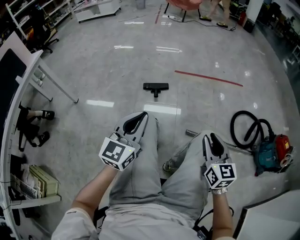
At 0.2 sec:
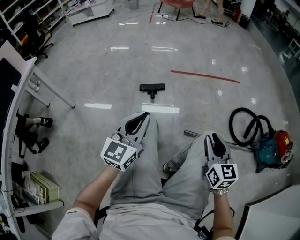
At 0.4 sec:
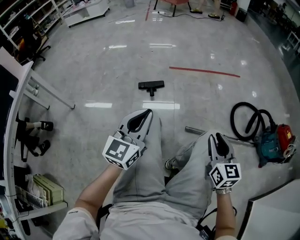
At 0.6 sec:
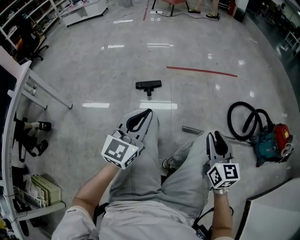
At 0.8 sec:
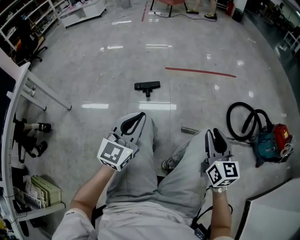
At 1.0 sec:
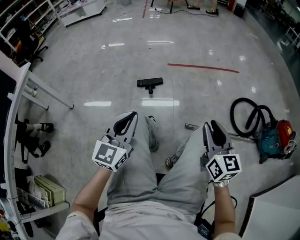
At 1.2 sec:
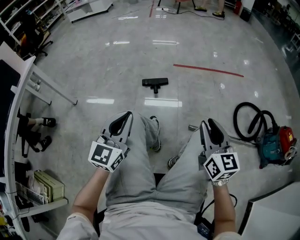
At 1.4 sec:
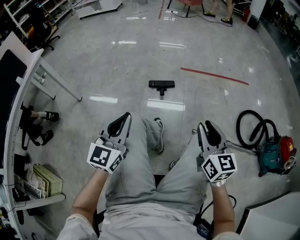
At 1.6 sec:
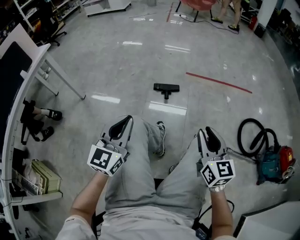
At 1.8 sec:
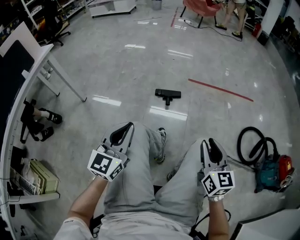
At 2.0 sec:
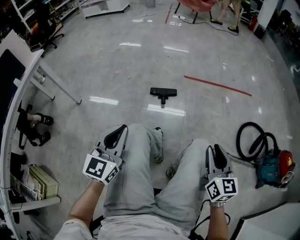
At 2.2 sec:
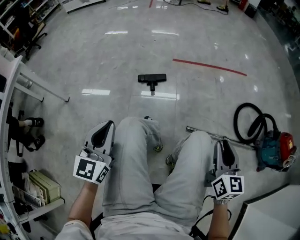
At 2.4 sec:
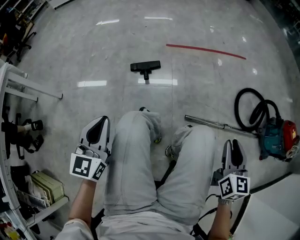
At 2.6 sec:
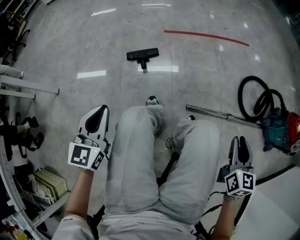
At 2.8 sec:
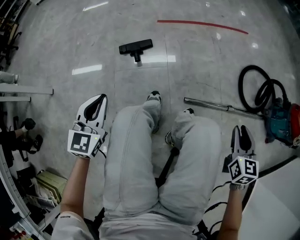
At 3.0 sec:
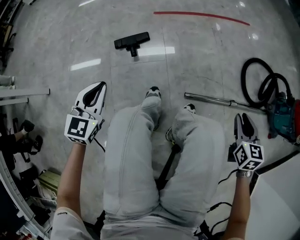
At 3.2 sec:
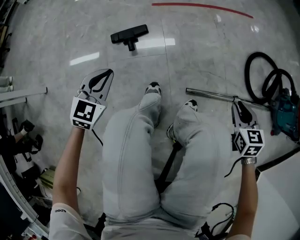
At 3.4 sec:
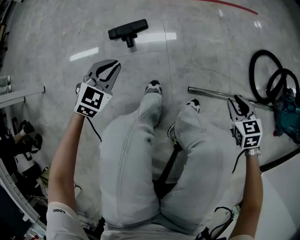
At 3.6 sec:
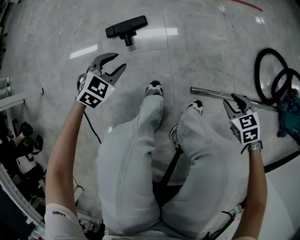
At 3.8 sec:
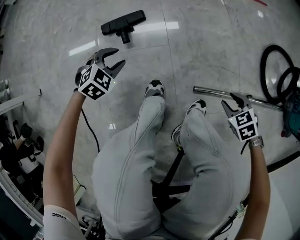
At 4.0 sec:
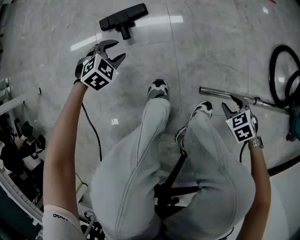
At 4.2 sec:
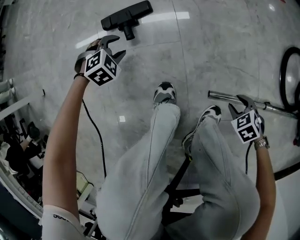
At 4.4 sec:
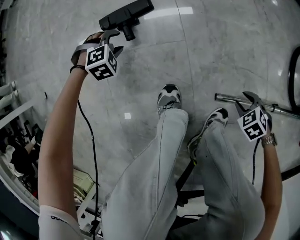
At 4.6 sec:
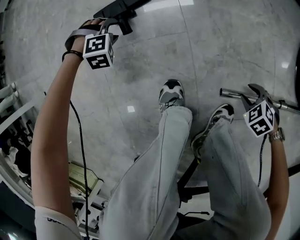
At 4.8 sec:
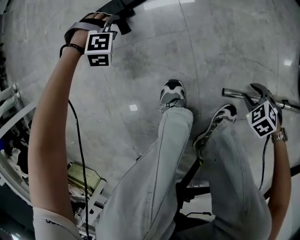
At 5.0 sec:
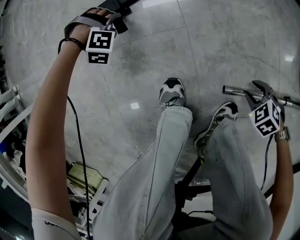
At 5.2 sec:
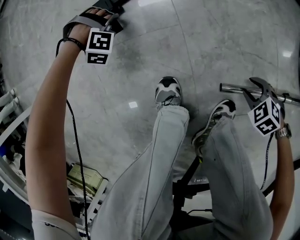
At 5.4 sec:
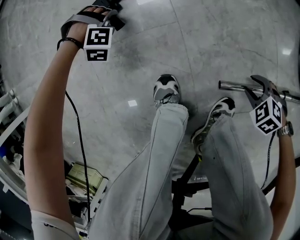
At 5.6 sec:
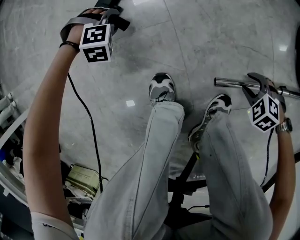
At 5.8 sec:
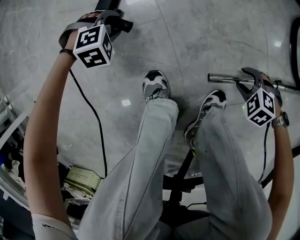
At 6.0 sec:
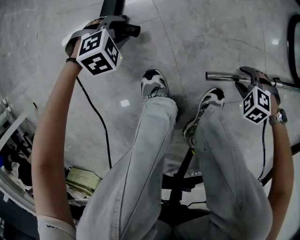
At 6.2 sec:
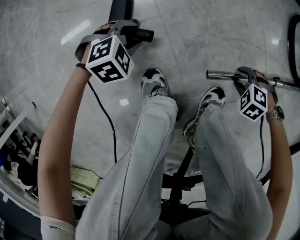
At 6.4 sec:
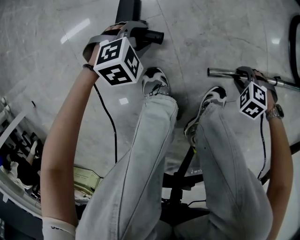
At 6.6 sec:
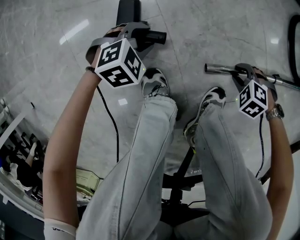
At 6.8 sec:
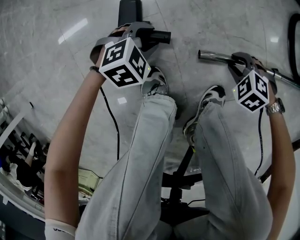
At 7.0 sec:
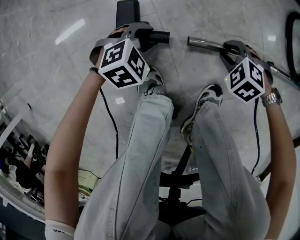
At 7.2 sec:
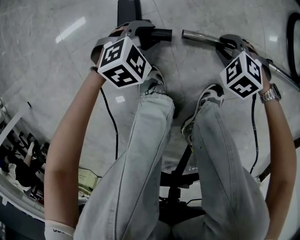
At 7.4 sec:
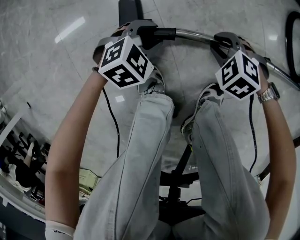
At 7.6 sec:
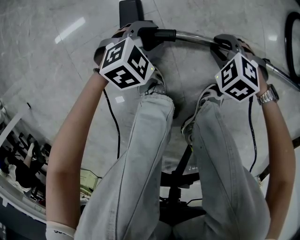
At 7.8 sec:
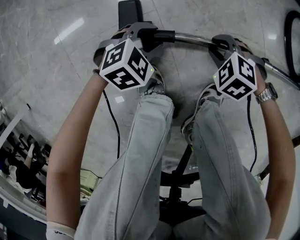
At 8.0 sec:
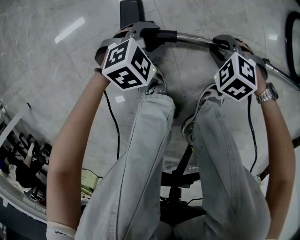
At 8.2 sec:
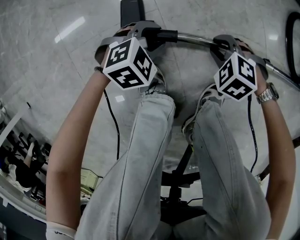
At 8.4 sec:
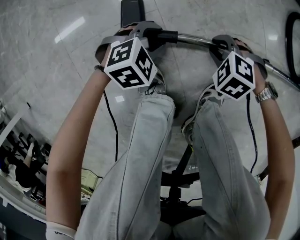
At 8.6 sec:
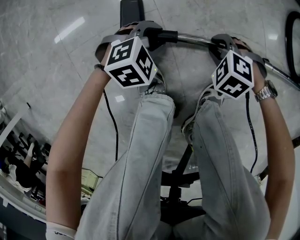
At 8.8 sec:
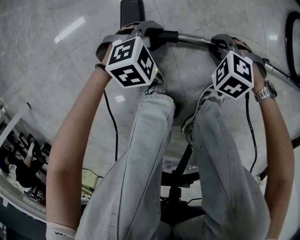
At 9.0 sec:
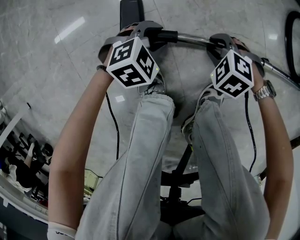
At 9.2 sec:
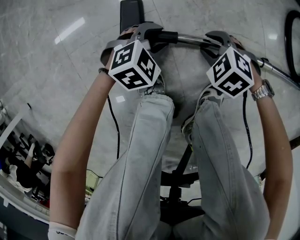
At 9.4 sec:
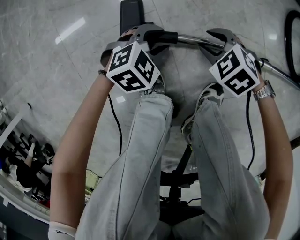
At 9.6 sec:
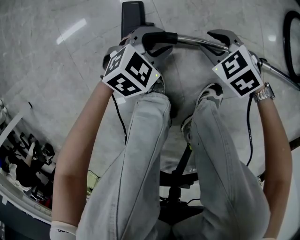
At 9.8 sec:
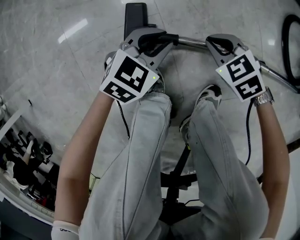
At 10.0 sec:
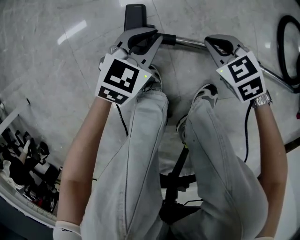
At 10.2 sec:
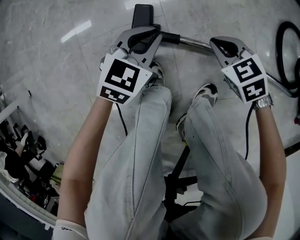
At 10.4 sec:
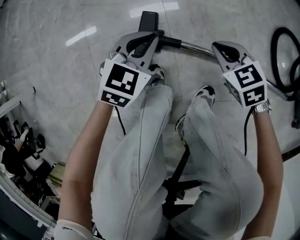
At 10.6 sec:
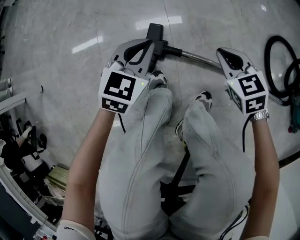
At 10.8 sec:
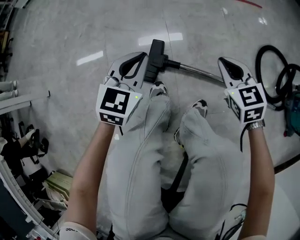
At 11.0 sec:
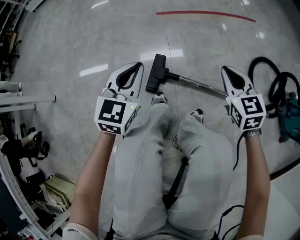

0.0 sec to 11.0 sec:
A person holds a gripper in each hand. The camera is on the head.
0.0 sec to 1.6 sec: Both grippers move to the left, some 10 cm.
1.6 sec to 3.2 sec: The right gripper is displaced downward, to the right and forward by some 40 cm, and tilts its fingers about 30 degrees downward. Meanwhile the left gripper heads downward and forward, covering roughly 35 cm, and rotates approximately 40 degrees.
3.2 sec to 4.8 sec: The two grippers go some 35 cm downward. The left gripper rotates around the line of its fingers by approximately 70 degrees, clockwise from behind, and opens up. Meanwhile the right gripper points its fingers roughly 40 degrees further downward.
4.8 sec to 6.2 sec: The left gripper changes place by approximately 20 cm, and changes its angle by roughly 40 degrees.
6.2 sec to 7.8 sec: The right gripper shifts by approximately 15 cm, while the left gripper changes place by roughly 10 cm.
7.8 sec to 9.4 sec: The grippers stay close to where they were, moving slightly.
9.4 sec to 11.0 sec: Both grippers move upward, approximately 40 cm. The right gripper tips its fingers upward by approximately 40 degrees, and closes. The left gripper angles its fingers upward, by some 30 degrees, and closes its fingers.

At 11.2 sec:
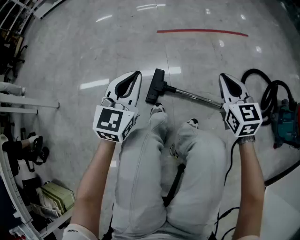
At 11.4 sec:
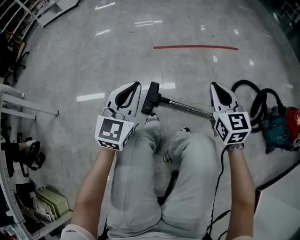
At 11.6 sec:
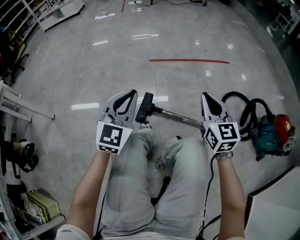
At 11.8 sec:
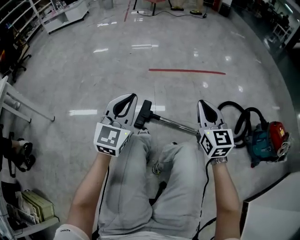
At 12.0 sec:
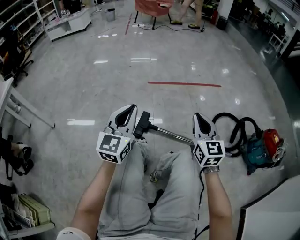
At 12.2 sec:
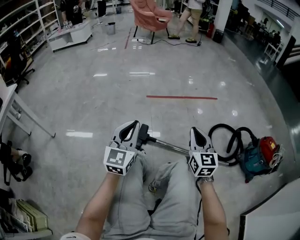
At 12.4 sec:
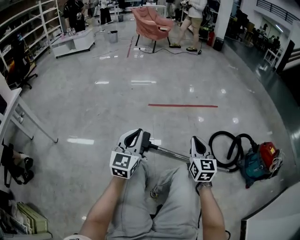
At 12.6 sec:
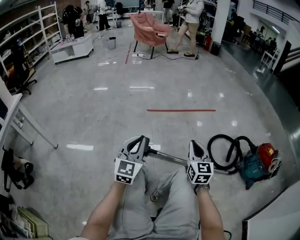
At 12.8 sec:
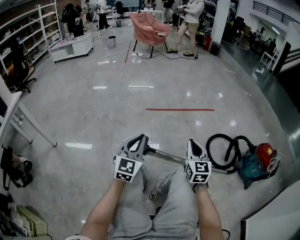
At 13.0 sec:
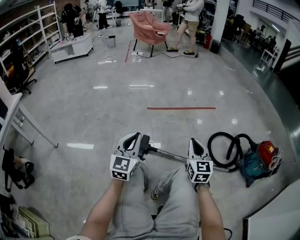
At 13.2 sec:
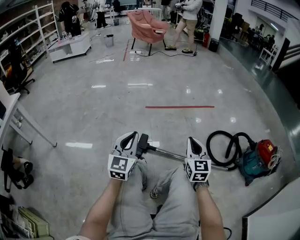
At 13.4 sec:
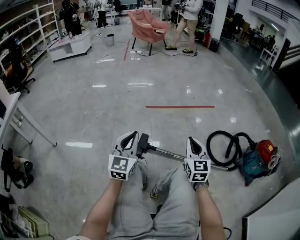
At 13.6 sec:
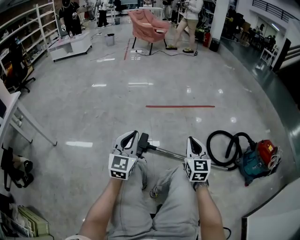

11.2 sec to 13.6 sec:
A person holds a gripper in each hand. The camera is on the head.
11.2 sec to 12.4 sec: The right gripper heads backward and upward, covering approximately 20 cm. The left gripper travels upward and backward by about 20 cm.
12.4 sec to 13.6 sec: The grippers make only small movements.

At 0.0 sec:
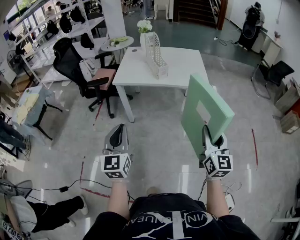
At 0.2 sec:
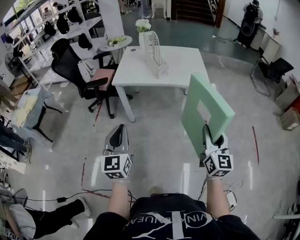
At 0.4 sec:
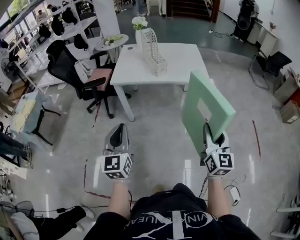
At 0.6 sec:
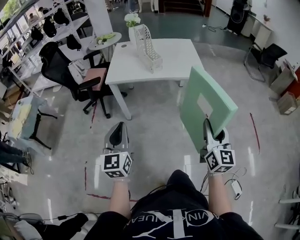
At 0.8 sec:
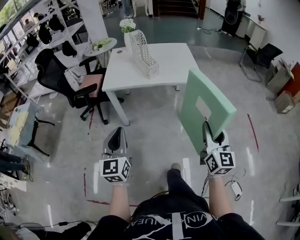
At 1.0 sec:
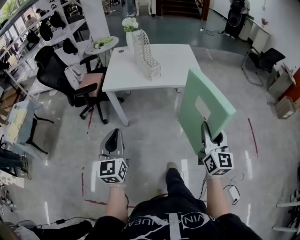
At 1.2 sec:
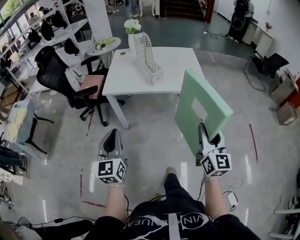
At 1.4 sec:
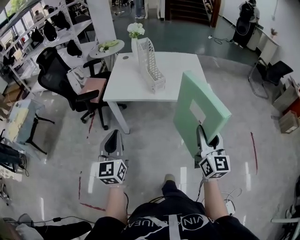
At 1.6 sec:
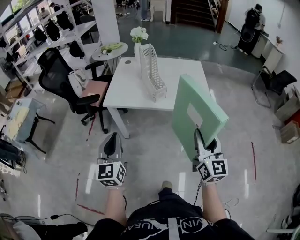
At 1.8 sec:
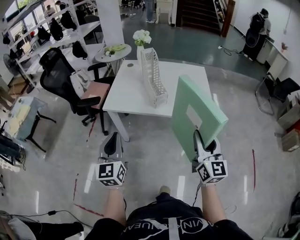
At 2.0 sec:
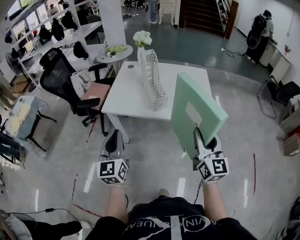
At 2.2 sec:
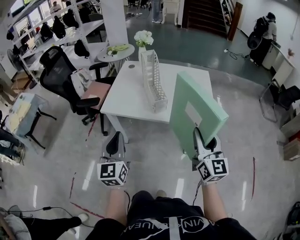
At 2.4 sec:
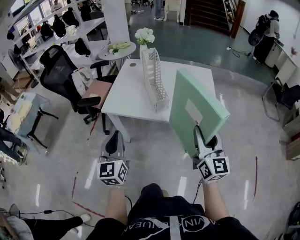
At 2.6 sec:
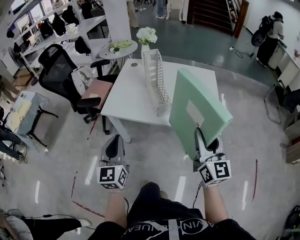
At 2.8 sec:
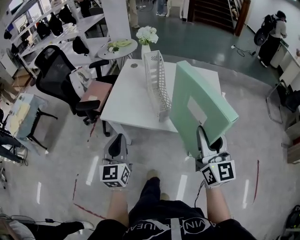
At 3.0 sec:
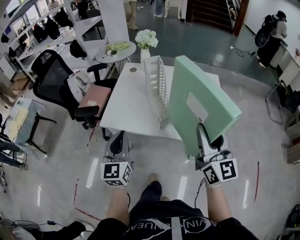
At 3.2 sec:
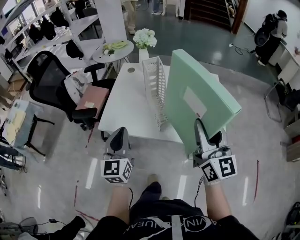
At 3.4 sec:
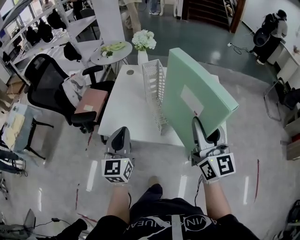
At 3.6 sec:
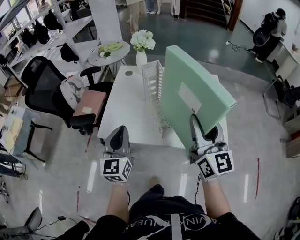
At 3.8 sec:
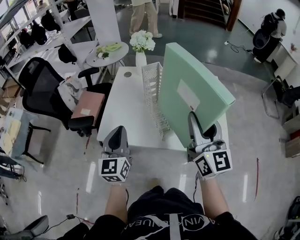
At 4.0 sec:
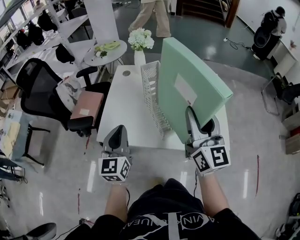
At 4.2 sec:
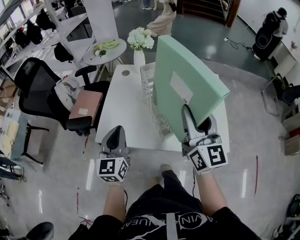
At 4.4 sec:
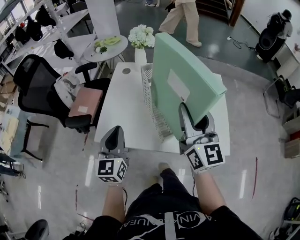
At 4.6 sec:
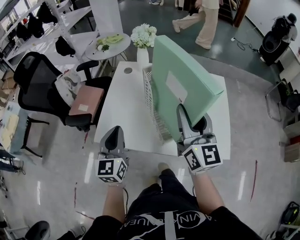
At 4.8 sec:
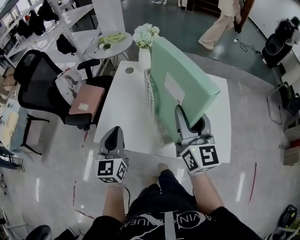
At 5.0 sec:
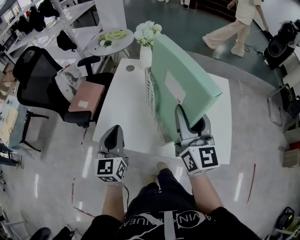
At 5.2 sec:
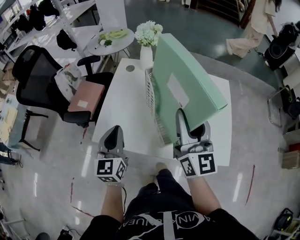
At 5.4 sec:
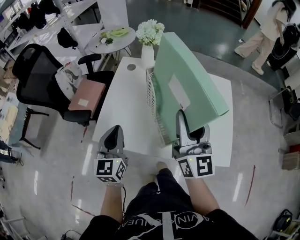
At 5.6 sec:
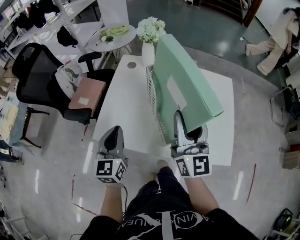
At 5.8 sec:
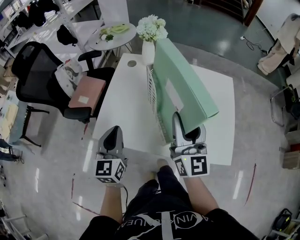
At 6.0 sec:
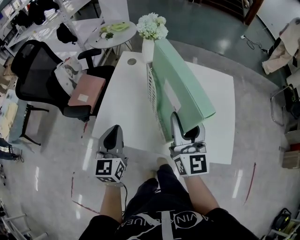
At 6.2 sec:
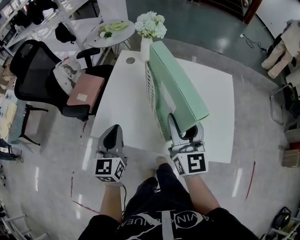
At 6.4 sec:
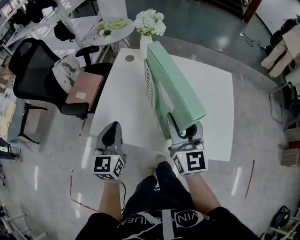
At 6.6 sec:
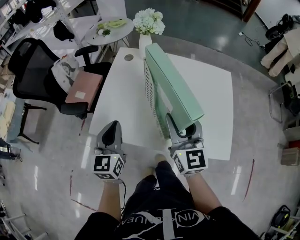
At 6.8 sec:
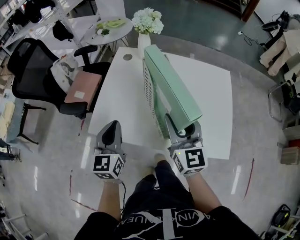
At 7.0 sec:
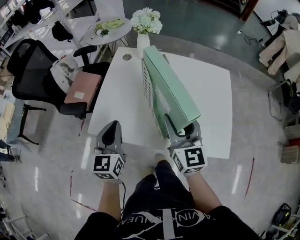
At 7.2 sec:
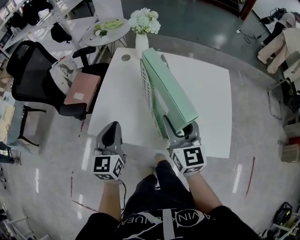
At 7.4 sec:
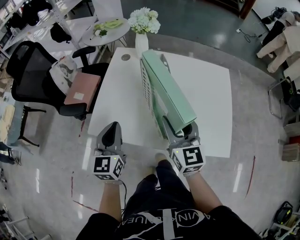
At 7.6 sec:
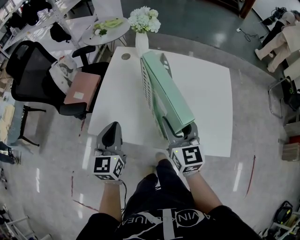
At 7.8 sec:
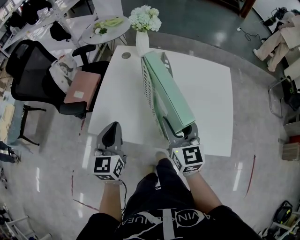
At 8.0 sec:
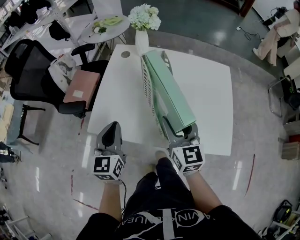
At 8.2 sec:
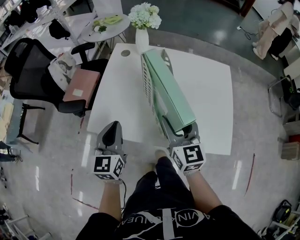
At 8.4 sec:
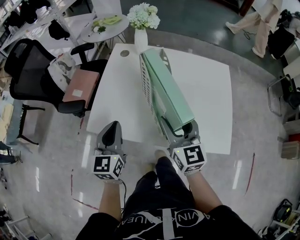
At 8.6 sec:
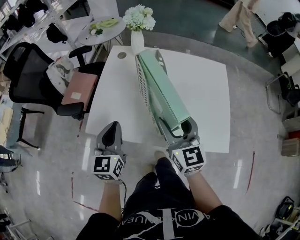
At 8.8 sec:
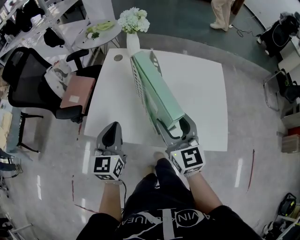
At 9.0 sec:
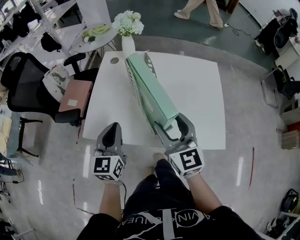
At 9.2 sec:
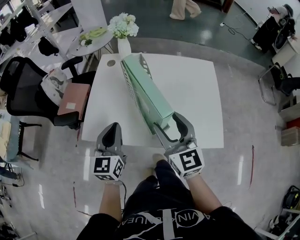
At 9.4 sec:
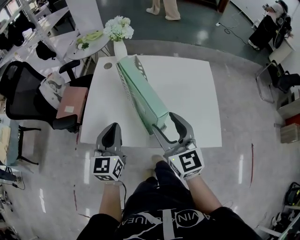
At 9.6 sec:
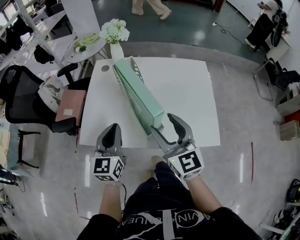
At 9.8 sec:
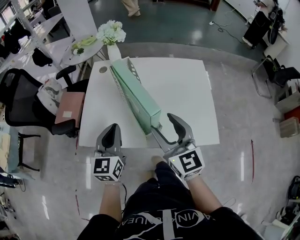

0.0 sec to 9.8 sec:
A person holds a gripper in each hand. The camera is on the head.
0.0 sec to 1.4 sec: Both grippers travel together forward, about 20 cm.
1.4 sec to 2.8 sec: Both grippers move forward, about 25 cm.
2.8 sec to 4.2 sec: Both grippers move forward, approximately 20 cm.
4.2 sec to 5.6 sec: The right gripper goes approximately 10 cm forward and downward, while the left gripper travels forward by roughly 5 cm.
5.6 sec to 7.0 sec: The right gripper travels downward by roughly 10 cm, and rotates about 20 degrees.
7.0 sec to 8.4 sec: There are only small adjustments of the grippers.
8.4 sec to 9.8 sec: The right gripper moves backward, about 5 cm, while the left gripper is displaced to the right by some 10 cm.
